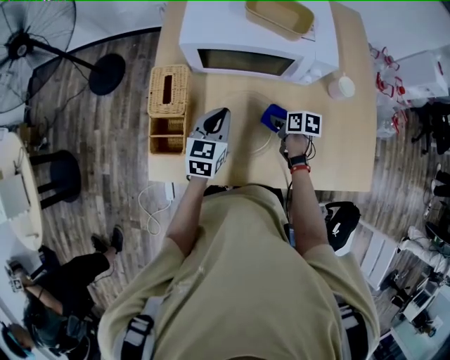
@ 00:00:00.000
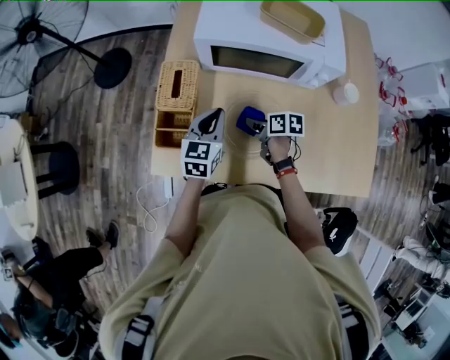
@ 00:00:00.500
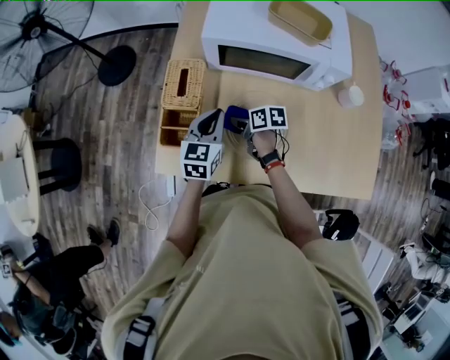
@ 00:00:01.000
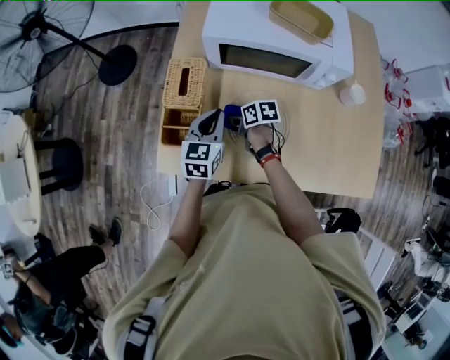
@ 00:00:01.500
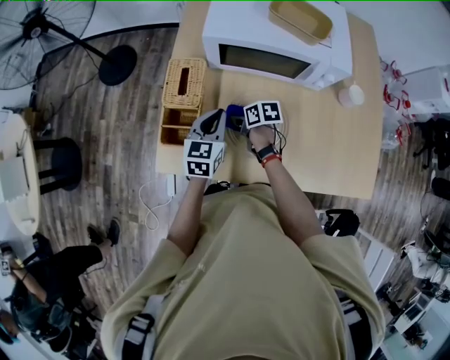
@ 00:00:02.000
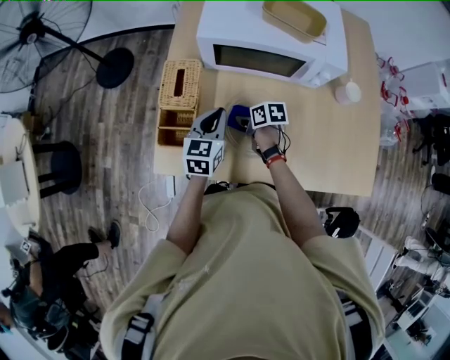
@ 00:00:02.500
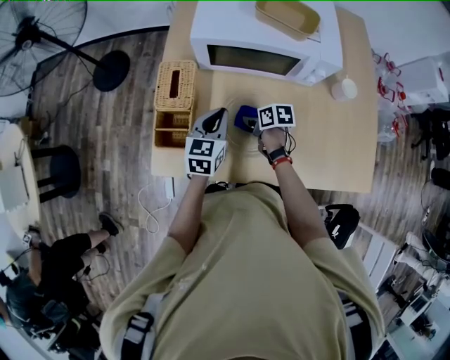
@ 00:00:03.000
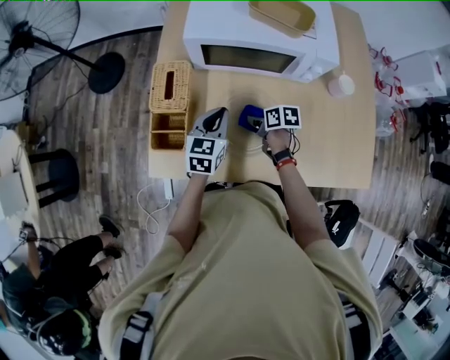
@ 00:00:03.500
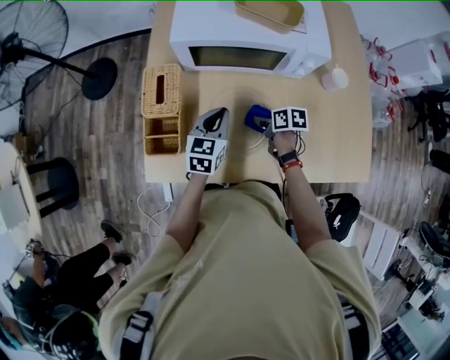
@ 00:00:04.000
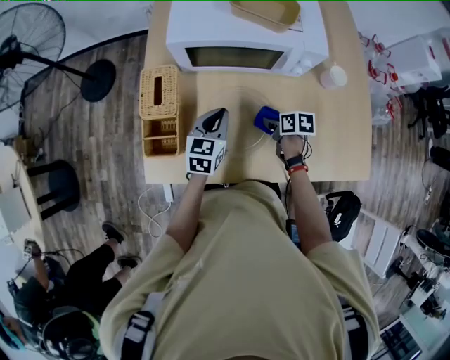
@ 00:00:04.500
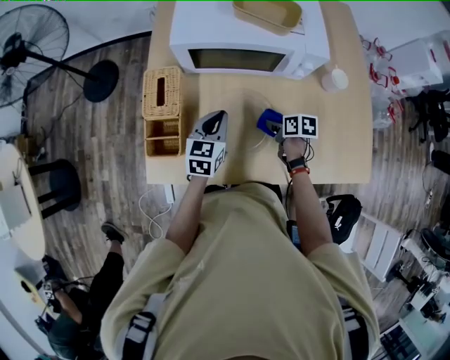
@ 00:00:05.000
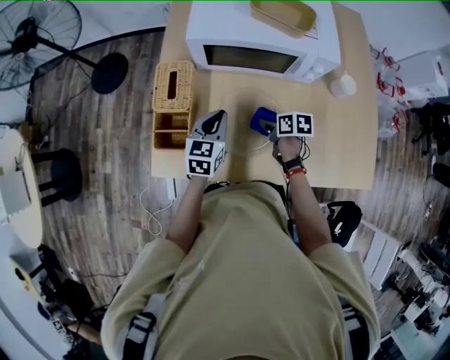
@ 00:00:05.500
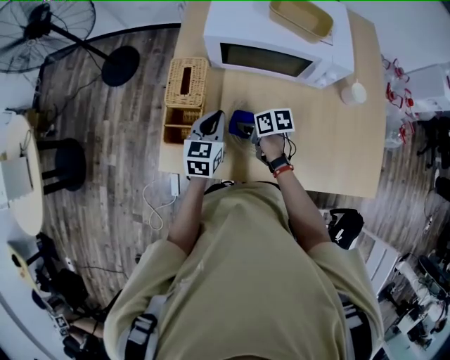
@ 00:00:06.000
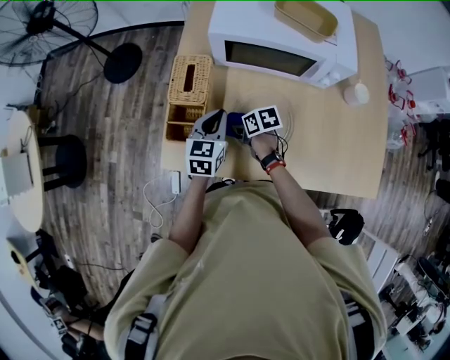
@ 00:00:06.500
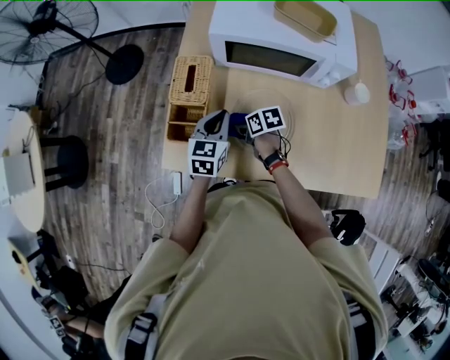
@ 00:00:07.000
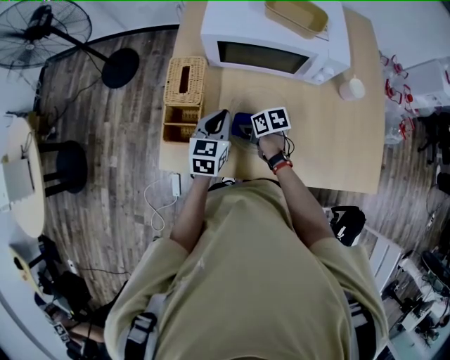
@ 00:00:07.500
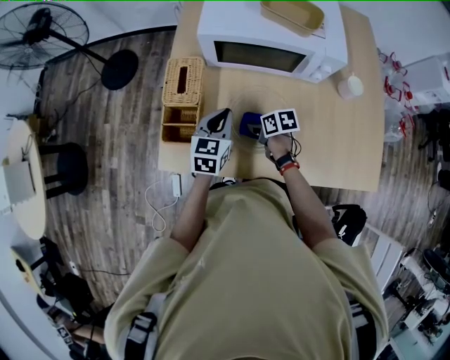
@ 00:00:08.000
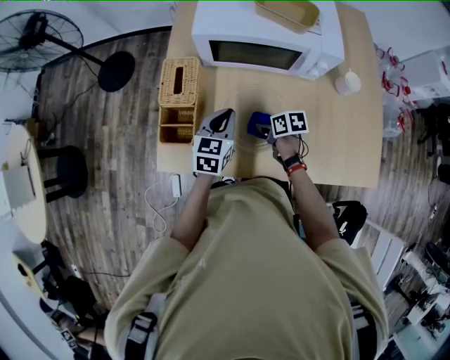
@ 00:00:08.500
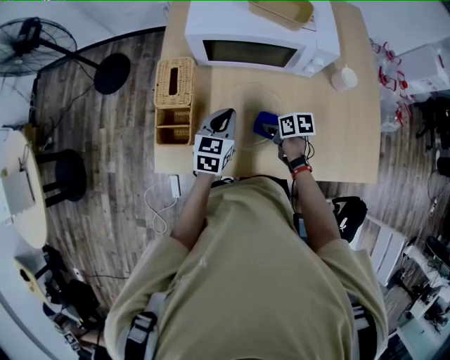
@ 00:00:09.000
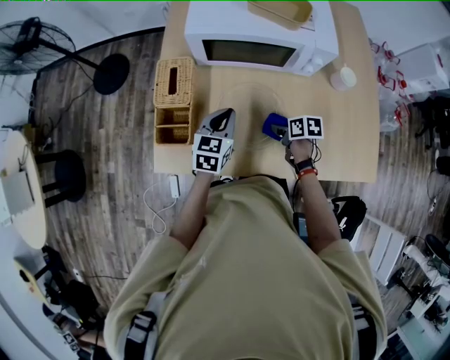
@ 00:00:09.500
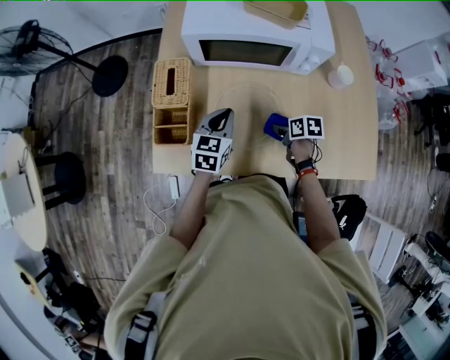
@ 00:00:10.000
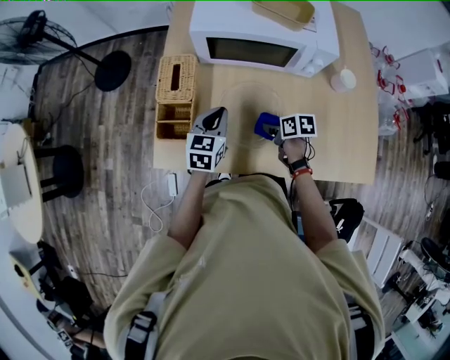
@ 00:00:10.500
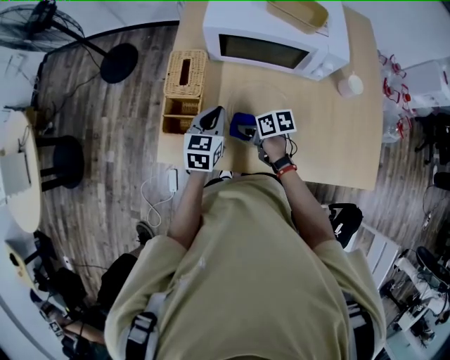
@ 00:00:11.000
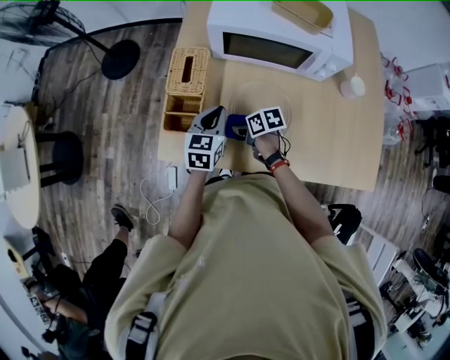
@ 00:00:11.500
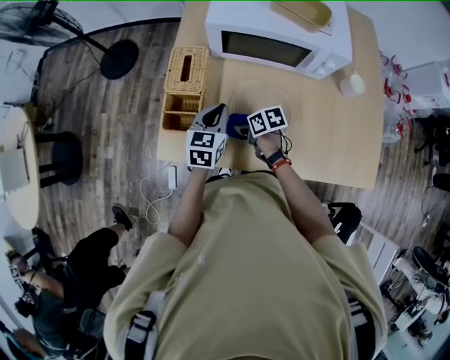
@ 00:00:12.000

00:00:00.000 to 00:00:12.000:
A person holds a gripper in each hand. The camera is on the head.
00:00:00.000 to 00:00:02.000: The left gripper moves to the left, approximately 5 cm; the right gripper shifts about 20 cm to the left.
00:00:02.000 to 00:00:04.000: The left gripper goes approximately 5 cm to the right; the right gripper goes about 15 cm to the right and backward.
00:00:04.000 to 00:00:06.000: The left gripper heads to the left, covering approximately 10 cm. Meanwhile the right gripper shifts roughly 15 cm to the left.
00:00:06.000 to 00:00:08.000: The right gripper shifts by roughly 5 cm.
00:00:08.000 to 00:00:10.000: The right gripper shifts approximately 15 cm to the right and backward.
00:00:10.000 to 00:00:12.000: The right gripper is displaced to the left by about 20 cm, and swivels approximately 20 degrees; the left gripper goes about 5 cm to the left.

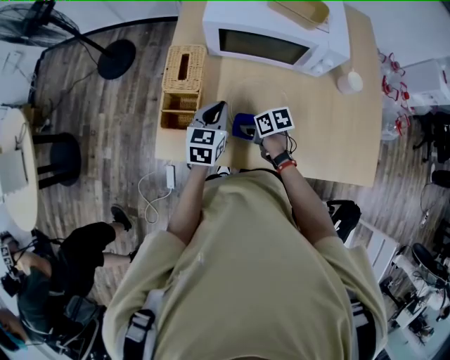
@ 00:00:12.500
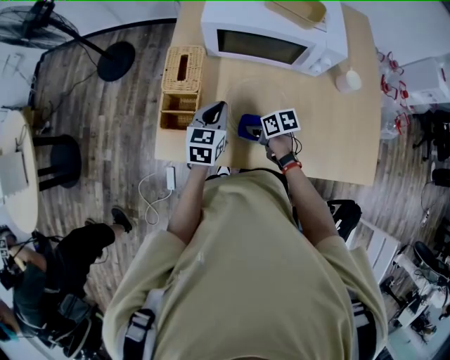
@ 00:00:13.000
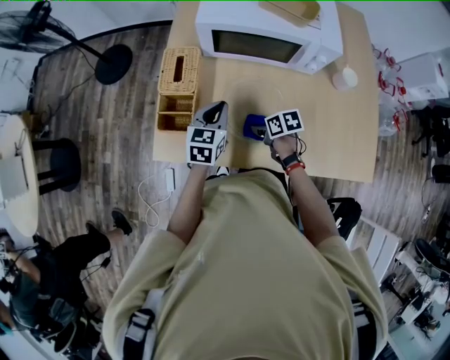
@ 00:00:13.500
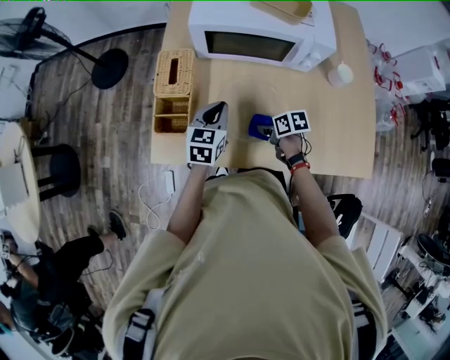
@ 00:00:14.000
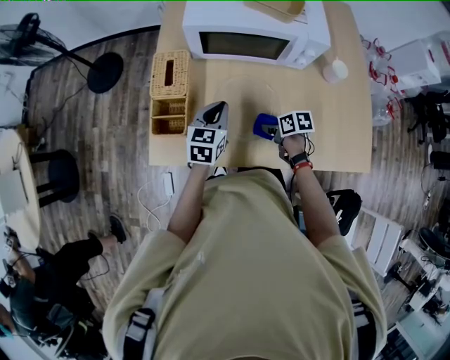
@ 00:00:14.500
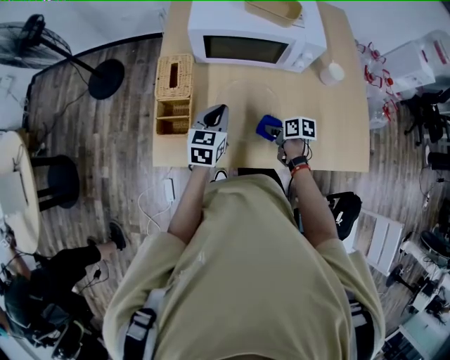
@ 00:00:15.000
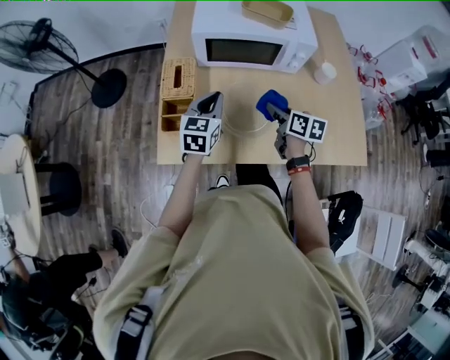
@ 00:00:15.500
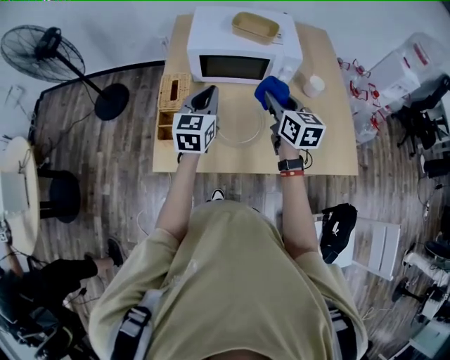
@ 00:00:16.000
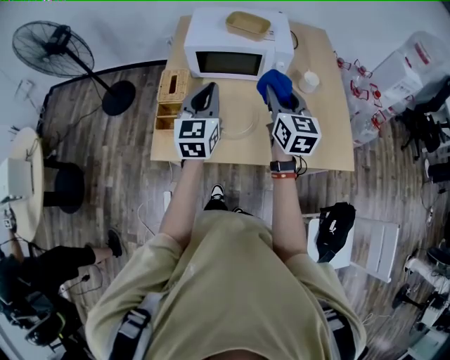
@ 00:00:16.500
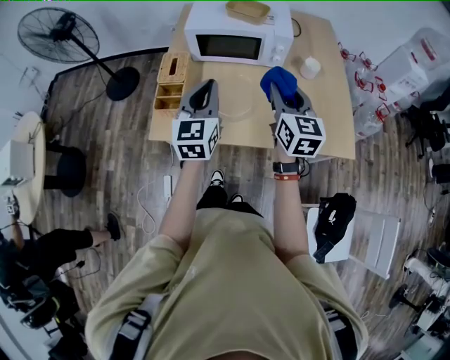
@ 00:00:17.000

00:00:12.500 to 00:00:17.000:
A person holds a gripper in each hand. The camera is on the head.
00:00:12.500 to 00:00:14.500: The right gripper heads to the right and backward, covering about 10 cm.
00:00:14.500 to 00:00:17.000: The right gripper travels upward by roughly 40 cm, and tilts its fingers approximately 40 degrees upward, while the left gripper moves upward and backward, about 30 cm, and swivels approximately 30 degrees.

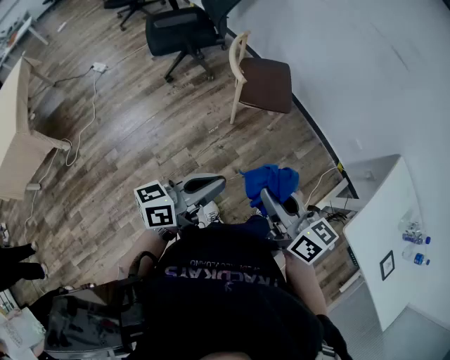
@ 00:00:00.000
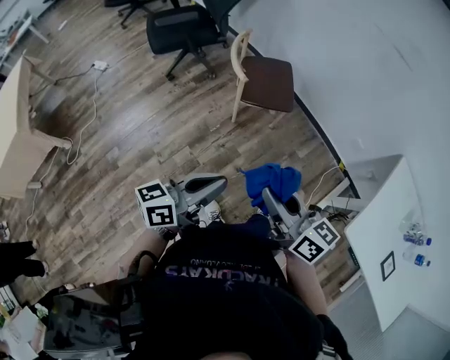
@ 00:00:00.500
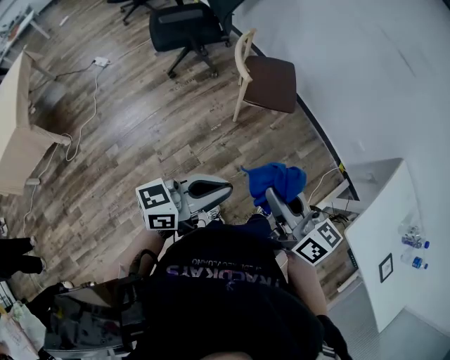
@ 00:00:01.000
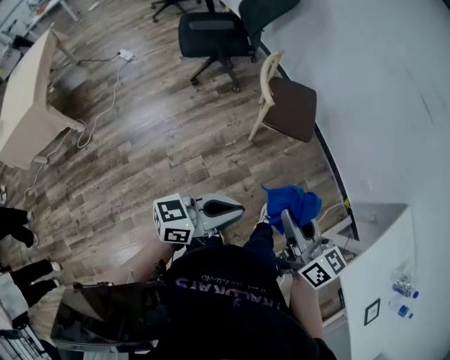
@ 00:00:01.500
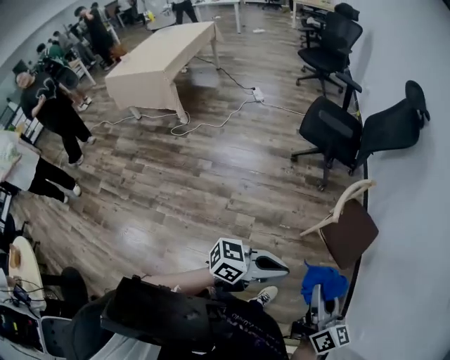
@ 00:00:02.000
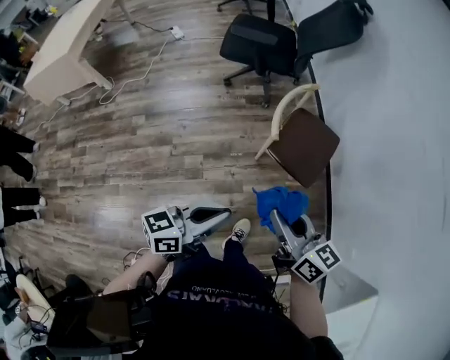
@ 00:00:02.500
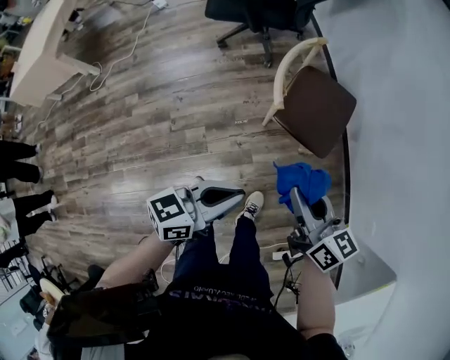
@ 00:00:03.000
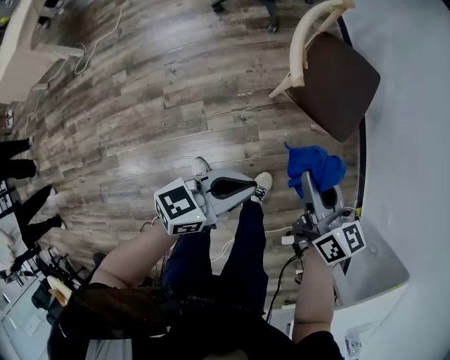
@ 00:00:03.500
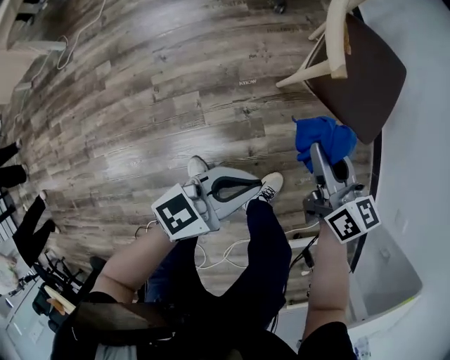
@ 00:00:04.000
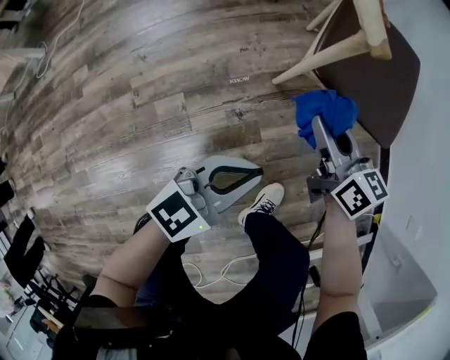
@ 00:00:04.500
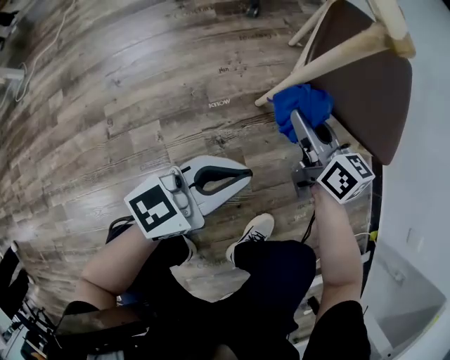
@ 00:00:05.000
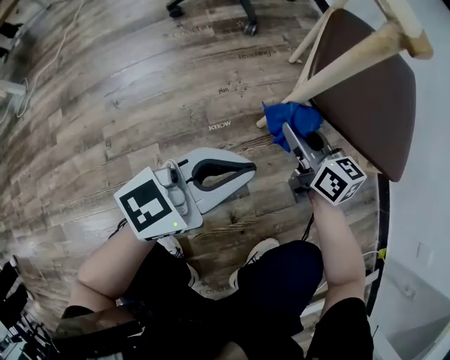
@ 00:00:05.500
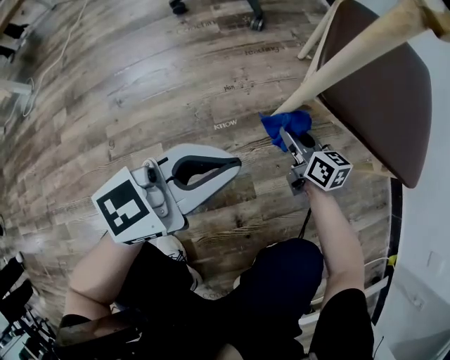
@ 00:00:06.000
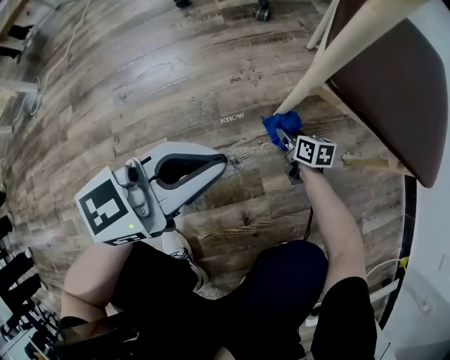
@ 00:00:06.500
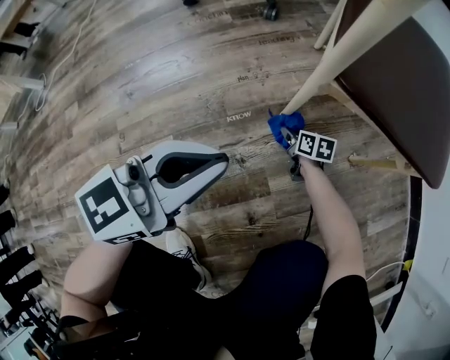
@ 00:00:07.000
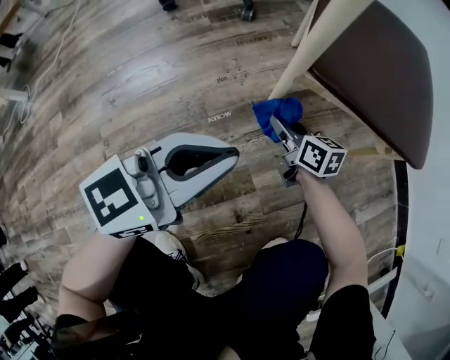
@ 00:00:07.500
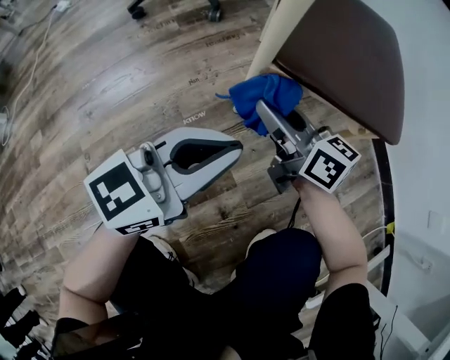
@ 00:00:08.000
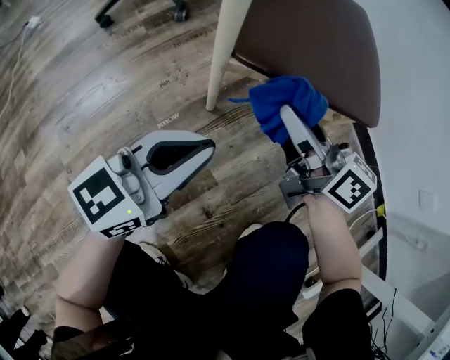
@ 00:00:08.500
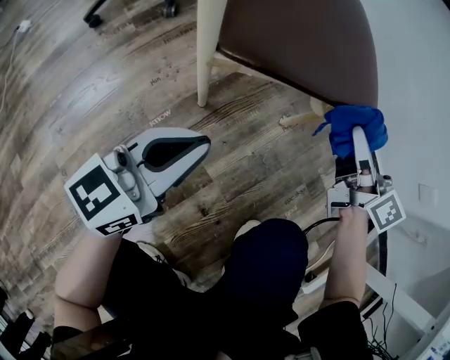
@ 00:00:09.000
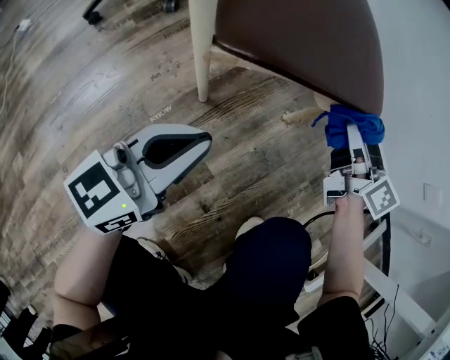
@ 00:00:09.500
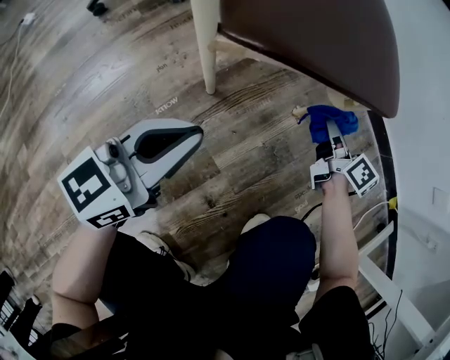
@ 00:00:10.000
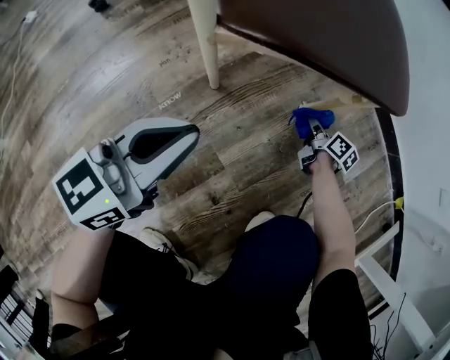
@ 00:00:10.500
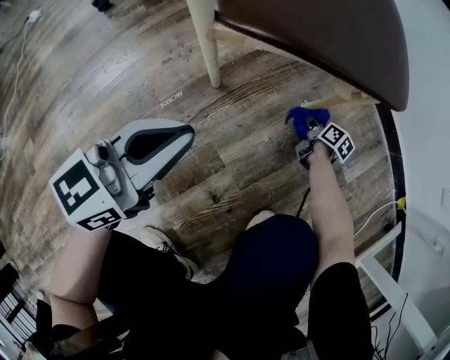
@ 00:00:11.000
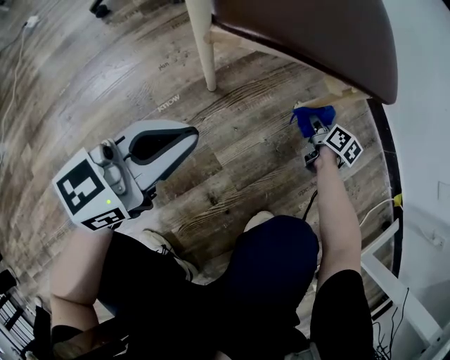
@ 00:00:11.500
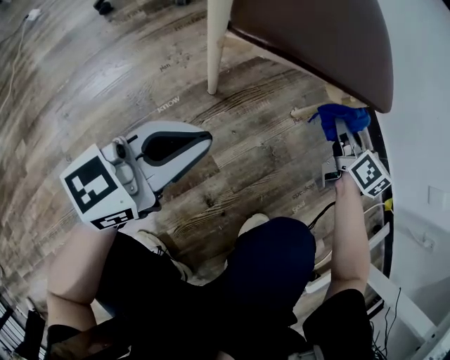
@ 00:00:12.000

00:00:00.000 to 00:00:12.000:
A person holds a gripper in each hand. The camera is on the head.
00:00:00.000 to 00:00:02.000: The two grippers go some 15 cm forward. The right gripper turns by roughly 20 degrees.
00:00:02.000 to 00:00:04.000: The right gripper moves downward and forward, some 40 cm; the left gripper shifts approximately 35 cm downward.
00:00:04.000 to 00:00:06.000: The left gripper heads downward and forward, covering about 25 cm; the right gripper goes some 40 cm downward.
00:00:06.000 to 00:00:08.000: The left gripper is displaced to the right by some 5 cm. The right gripper goes about 15 cm upward.
00:00:08.000 to 00:00:10.000: The left gripper goes approximately 5 cm downward; the right gripper is displaced to the right and downward by about 30 cm, and changes its angle by roughly 40 degrees.
00:00:10.000 to 00:00:12.000: The right gripper moves roughly 20 cm downward and comes back, and rotates roughly 20 degrees.
